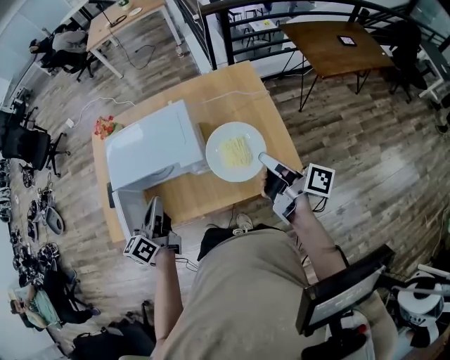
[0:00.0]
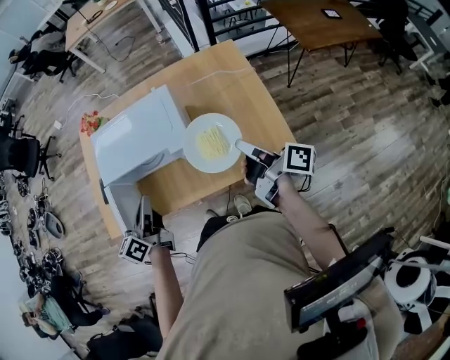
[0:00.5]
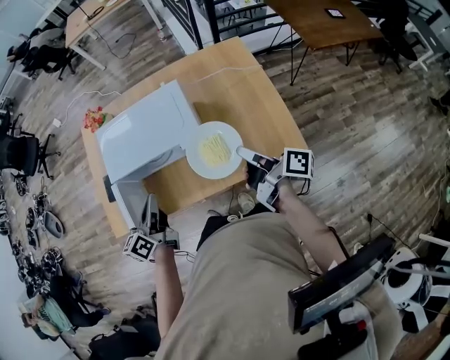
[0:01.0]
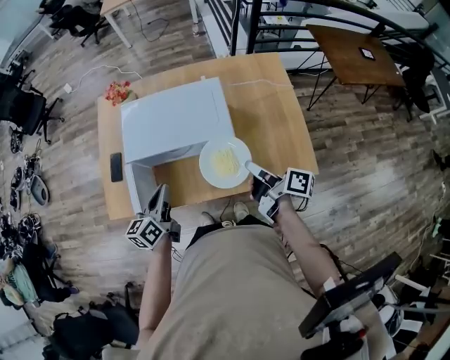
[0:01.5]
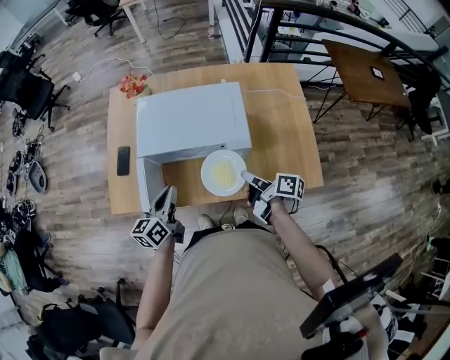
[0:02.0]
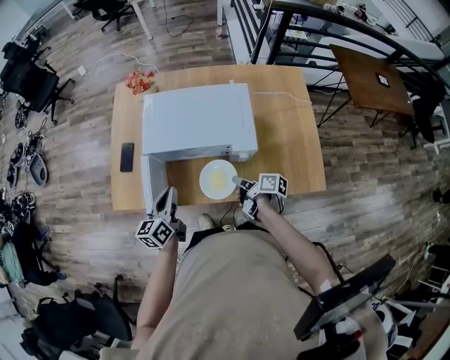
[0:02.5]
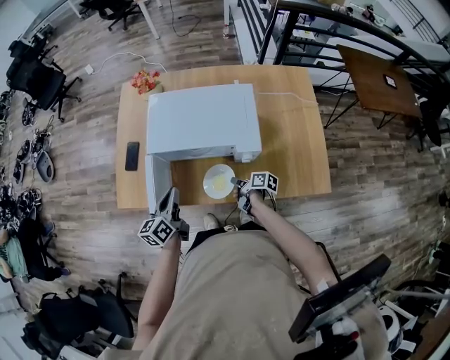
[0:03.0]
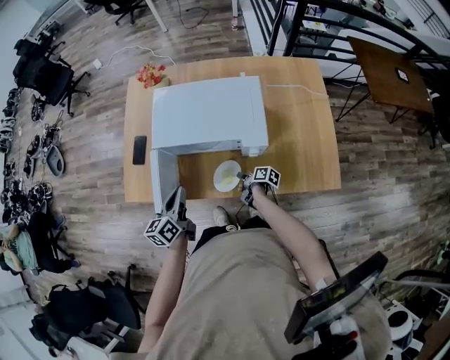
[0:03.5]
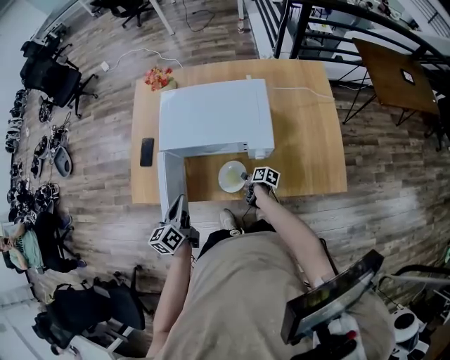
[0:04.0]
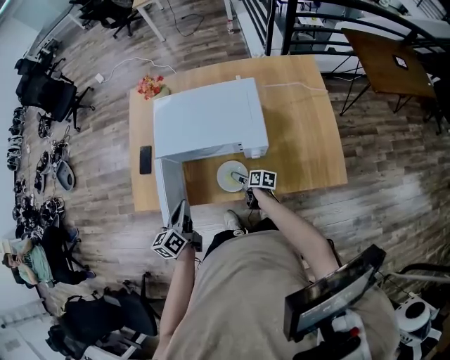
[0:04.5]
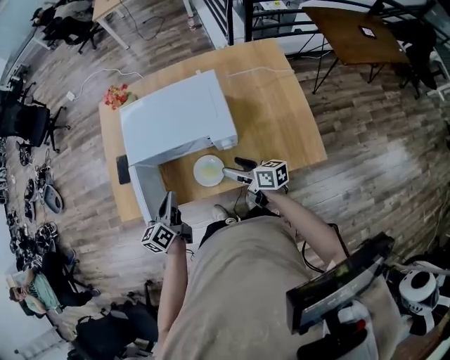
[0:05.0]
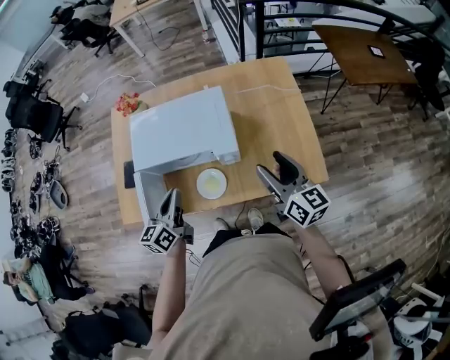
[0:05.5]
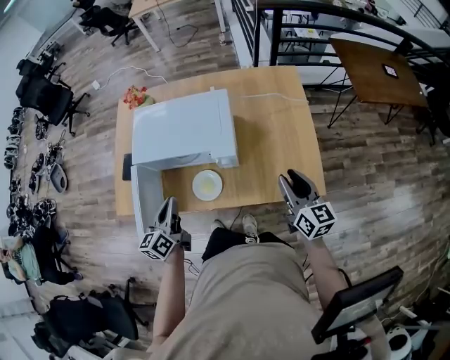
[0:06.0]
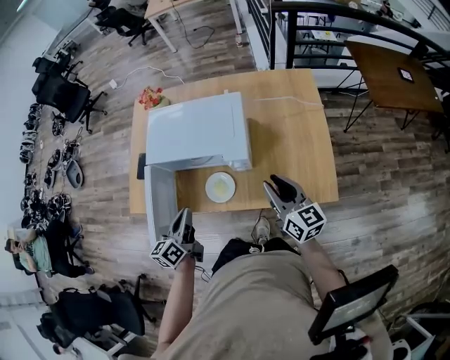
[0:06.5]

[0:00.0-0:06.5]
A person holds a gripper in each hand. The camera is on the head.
0:00.0 to 0:02.0: The left gripper shifts approximately 15 cm to the left and downward, while the right gripper goes roughly 25 cm to the left and downward, and changes its angle by some 20 degrees.
0:02.0 to 0:04.5: The right gripper heads downward, covering about 25 cm, rotates approximately 20 degrees, and opens. The left gripper moves about 5 cm.
0:04.5 to 0:06.5: The right gripper is displaced upward and to the right by roughly 40 cm, points its fingers approximately 30 degrees further upward, and closes its fingers. Meanwhile the left gripper travels to the right by about 10 cm.

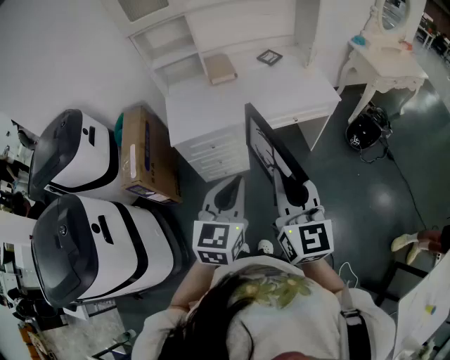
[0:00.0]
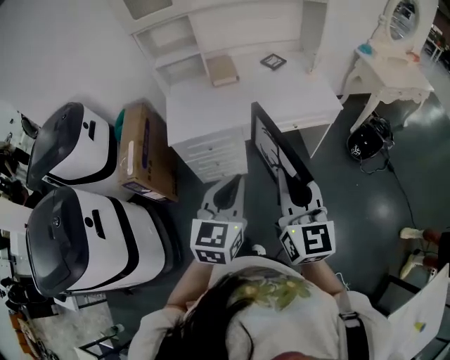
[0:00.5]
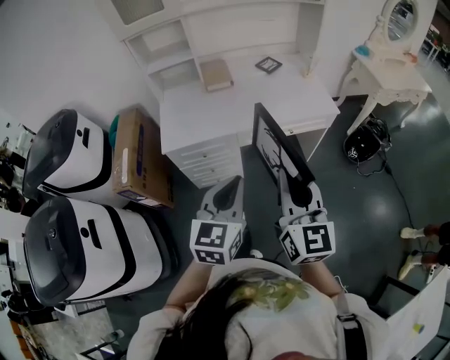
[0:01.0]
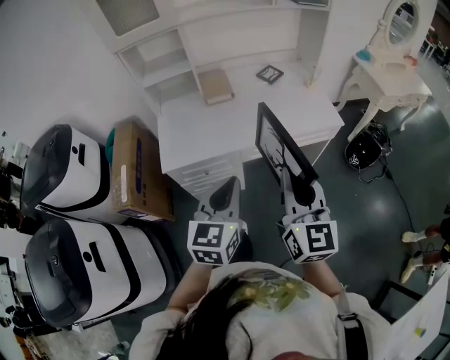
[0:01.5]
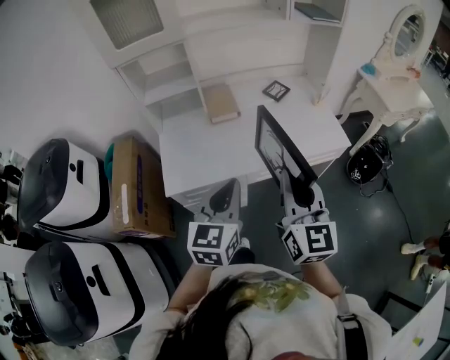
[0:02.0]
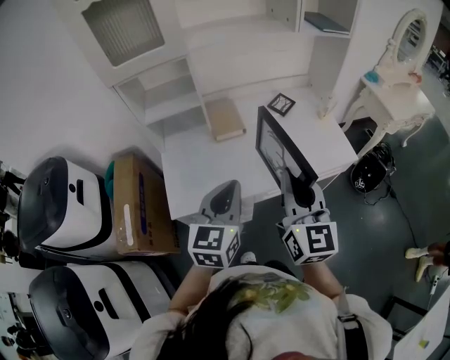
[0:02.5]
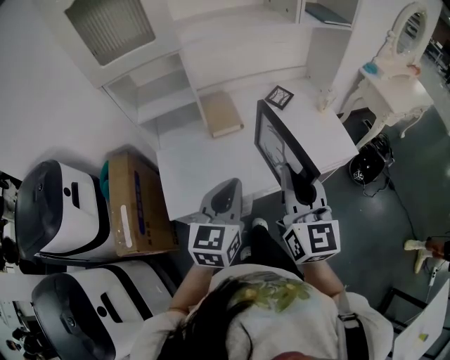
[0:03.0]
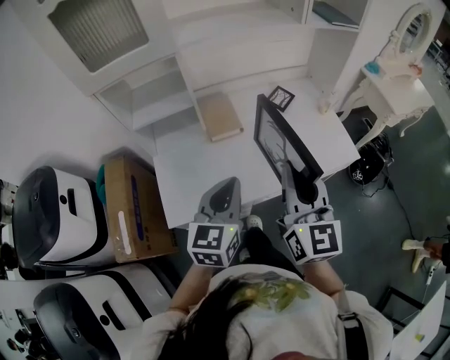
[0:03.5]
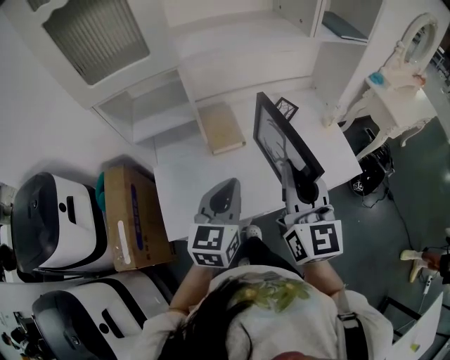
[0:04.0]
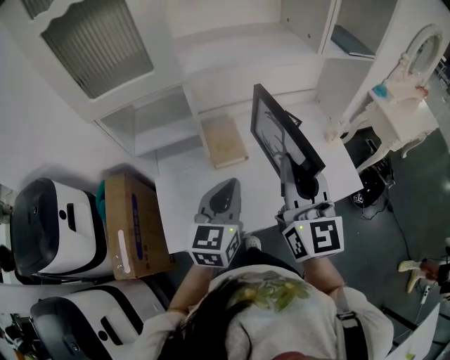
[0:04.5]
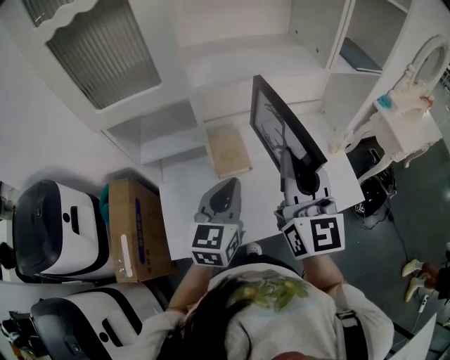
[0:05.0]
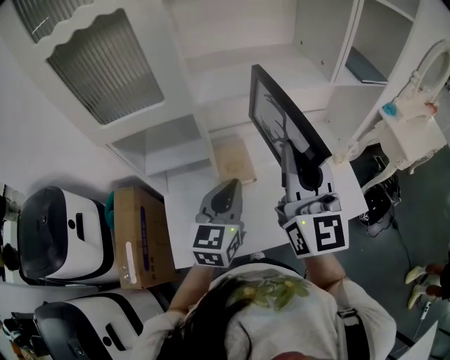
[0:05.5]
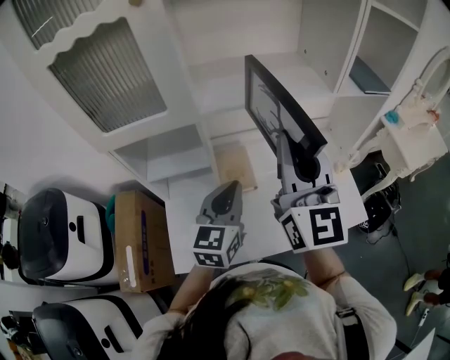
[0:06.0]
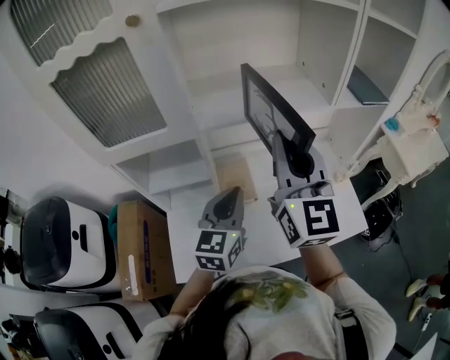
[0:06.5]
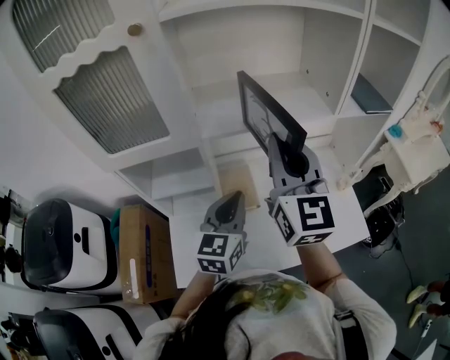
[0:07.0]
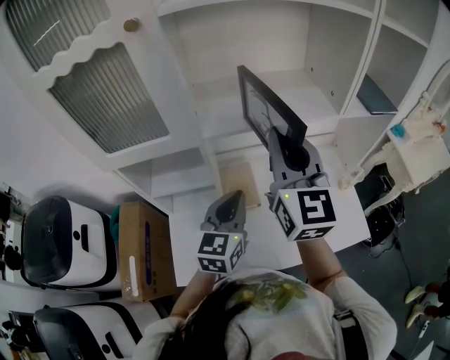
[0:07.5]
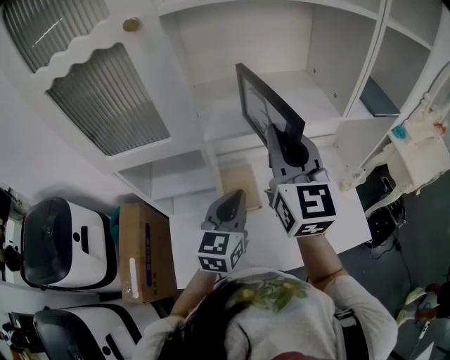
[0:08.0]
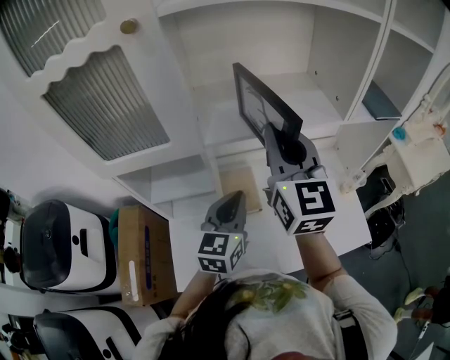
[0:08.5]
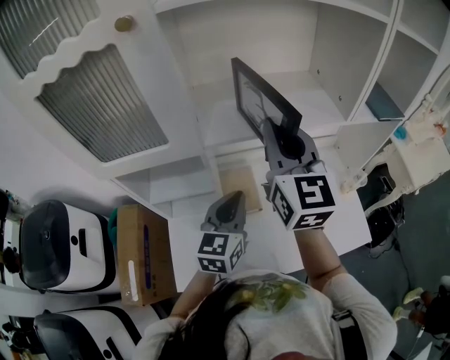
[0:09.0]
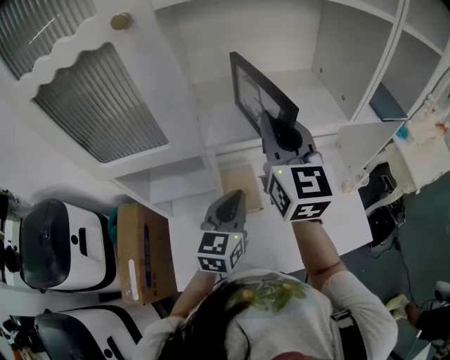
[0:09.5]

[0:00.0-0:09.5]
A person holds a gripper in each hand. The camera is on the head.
0:00.0 to 0:02.0: Both grippers move forward, some 25 cm.
0:02.0 to 0:04.0: Both grippers move forward, approximately 20 cm.
0:04.0 to 0:05.5: The right gripper goes some 15 cm upward and forward; the left gripper is displaced forward and upward by approximately 10 cm.
0:05.5 to 0:07.5: The right gripper travels forward by about 10 cm. The left gripper goes about 5 cm forward.
0:07.5 to 0:09.5: The right gripper is displaced forward by approximately 5 cm.

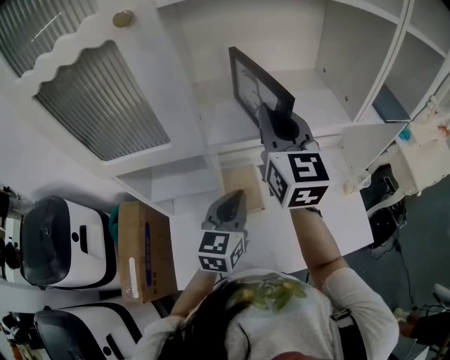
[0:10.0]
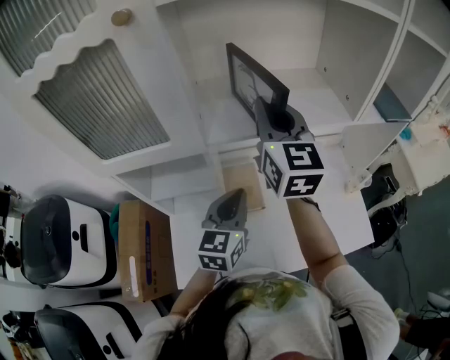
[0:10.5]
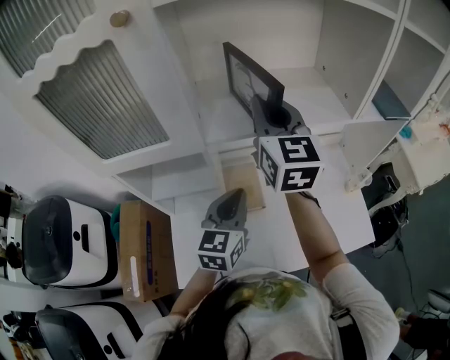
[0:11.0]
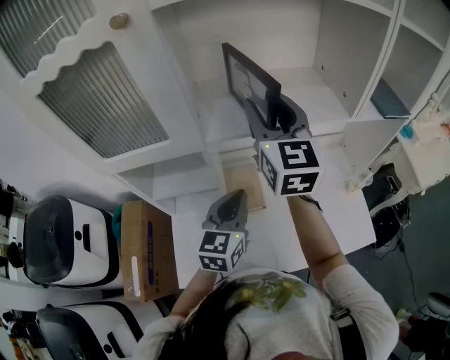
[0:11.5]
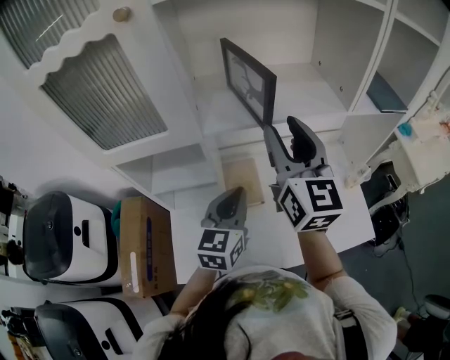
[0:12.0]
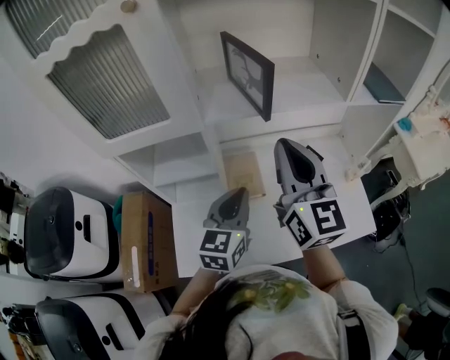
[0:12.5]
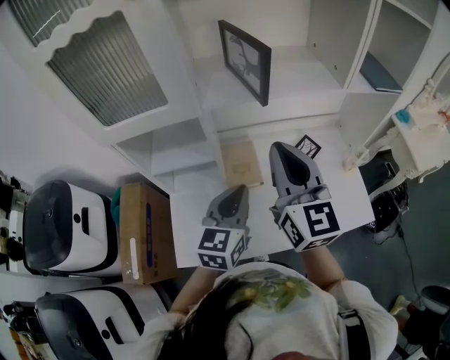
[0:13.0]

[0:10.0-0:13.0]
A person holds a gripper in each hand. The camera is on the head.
0:10.0 to 0:11.5: The right gripper opens up.
0:11.5 to 0:13.0: The left gripper travels backward by about 10 cm. Meanwhile the right gripper goes roughly 20 cm backward and downward, and closes.

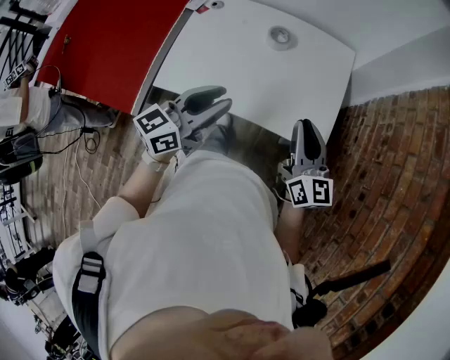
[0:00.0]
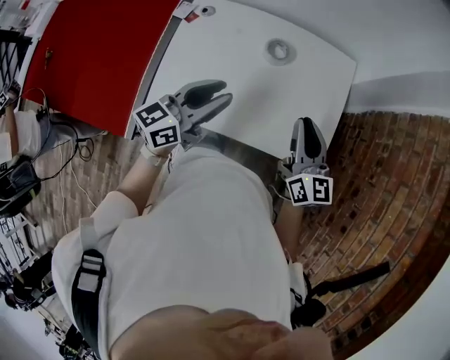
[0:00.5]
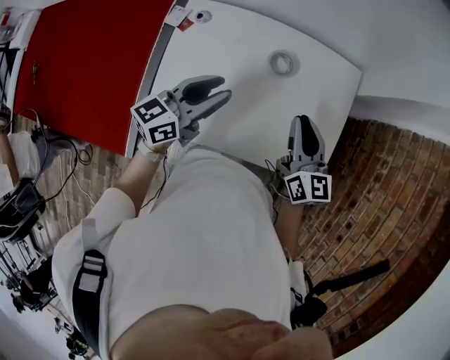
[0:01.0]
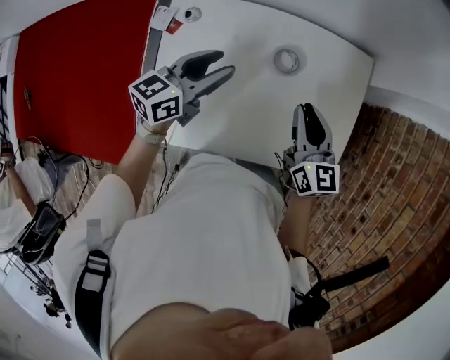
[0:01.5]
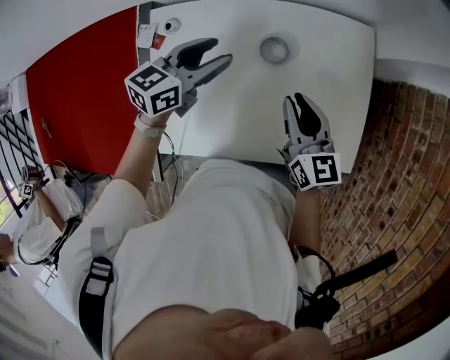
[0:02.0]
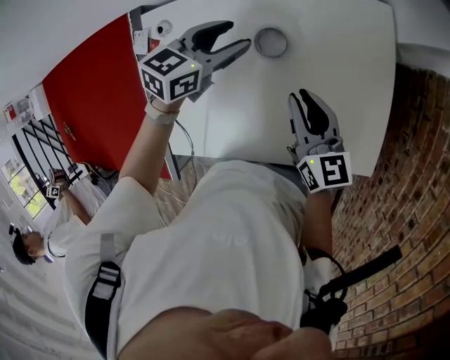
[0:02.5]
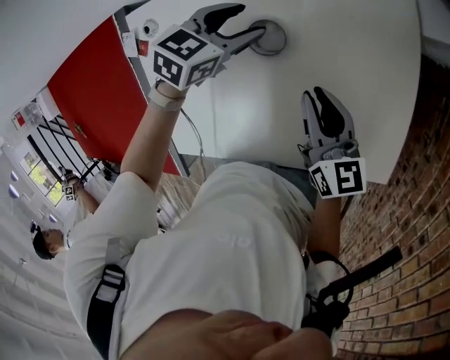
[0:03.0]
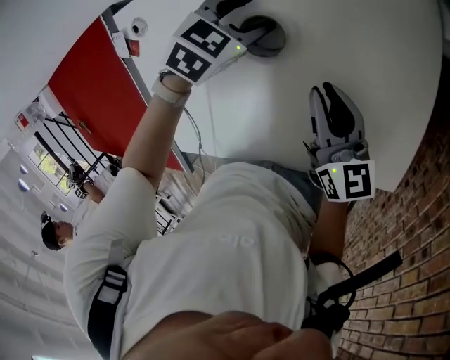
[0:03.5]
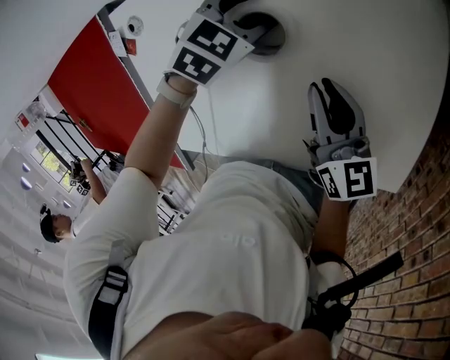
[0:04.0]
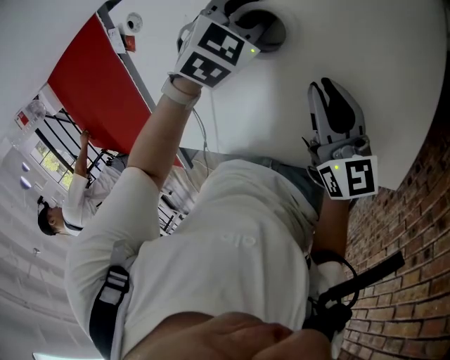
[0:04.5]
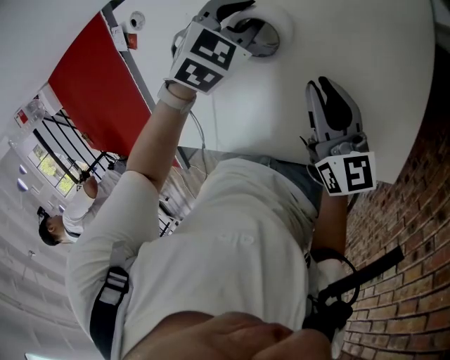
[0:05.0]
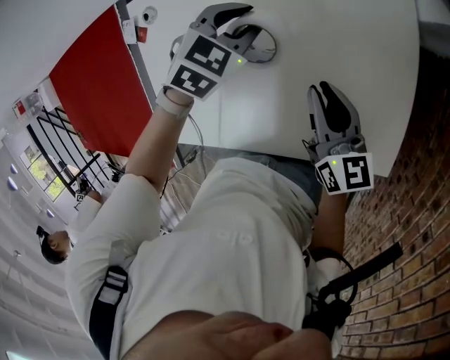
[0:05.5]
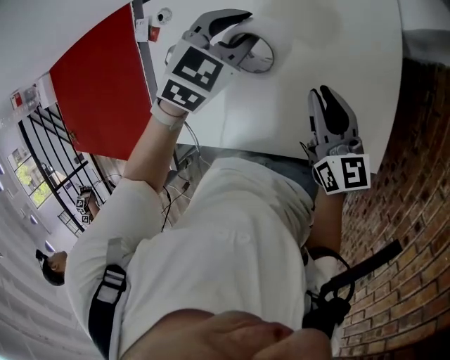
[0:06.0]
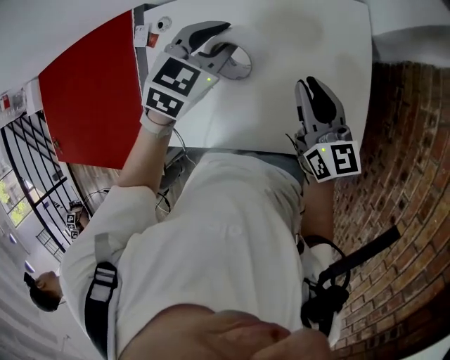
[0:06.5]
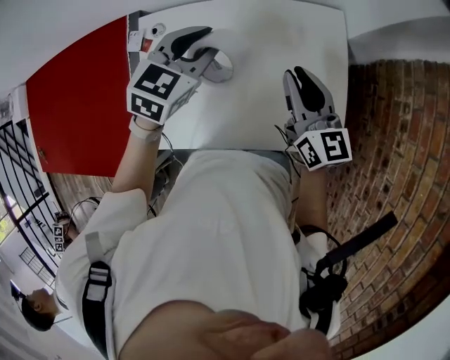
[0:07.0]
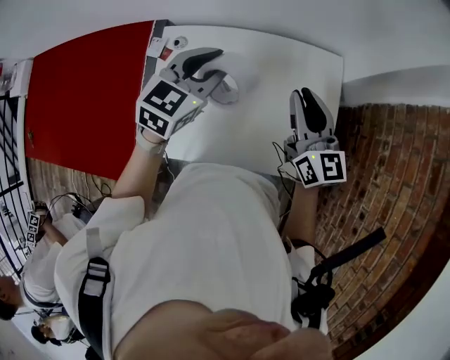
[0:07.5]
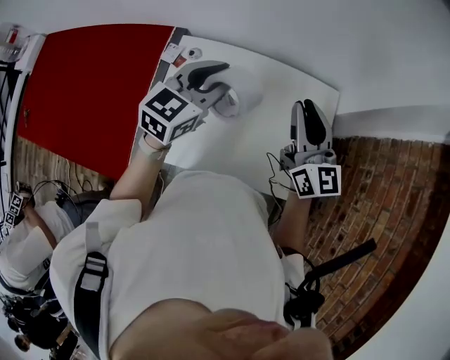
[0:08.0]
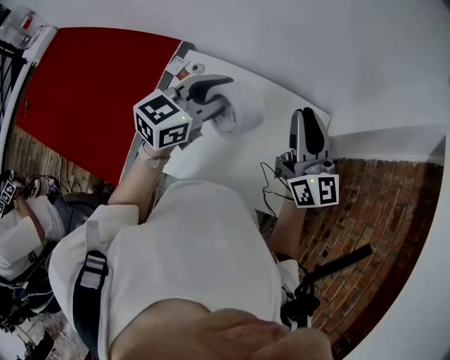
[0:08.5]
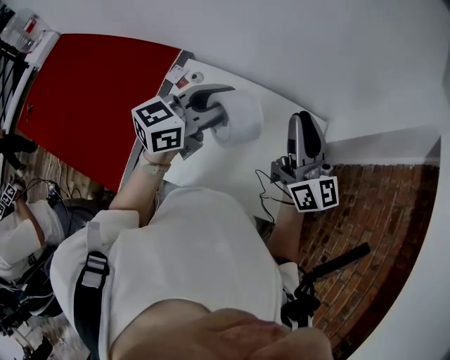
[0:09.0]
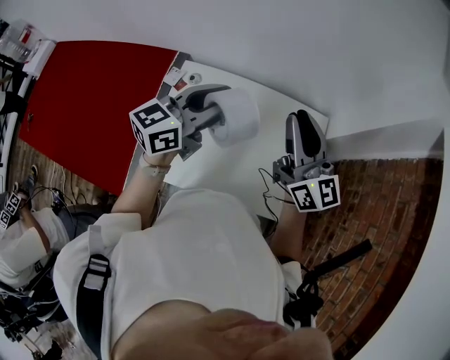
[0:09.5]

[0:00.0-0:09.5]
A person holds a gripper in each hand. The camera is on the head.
0:00.0 to 0:02.0: The left gripper shifts some 40 cm forward, swivels about 20 degrees, and opens. Meanwhile the right gripper moves forward, to the left and downward, roughly 35 cm.
0:02.0 to 0:04.0: The right gripper moves downward, roughly 20 cm. The left gripper travels downward and forward by some 30 cm, and angles its fingers downward, by roughly 40 degrees.
0:04.0 to 0:05.5: The right gripper heads upward, covering roughly 5 cm; the left gripper goes roughly 10 cm upward and backward, and closes up.
0:05.5 to 0:07.5: Both grippers travel together upward, about 30 cm. The right gripper rotates roughly 30 degrees; the left gripper tilts its fingers some 30 degrees upward.
0:07.5 to 0:09.5: The right gripper travels upward and to the left by some 15 cm, while the left gripper goes some 10 cm upward, and changes its angle by some 30 degrees.
